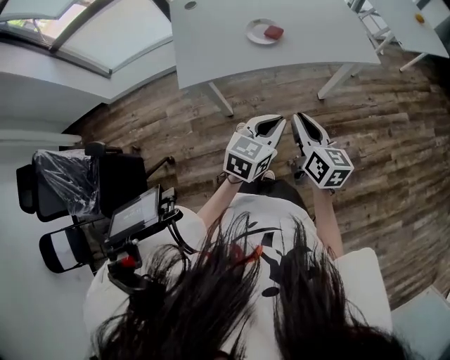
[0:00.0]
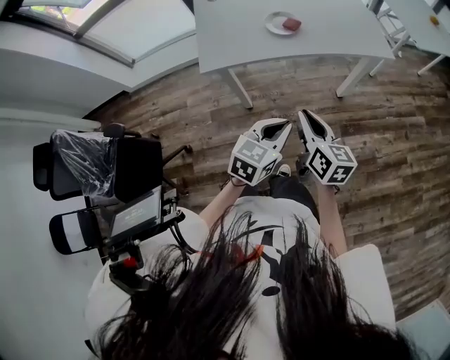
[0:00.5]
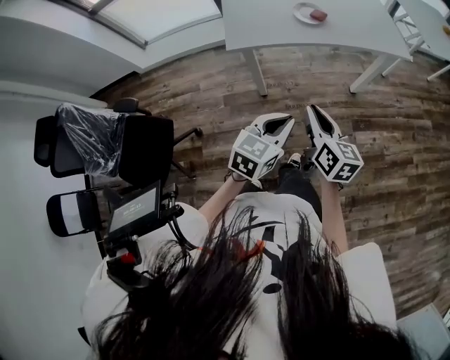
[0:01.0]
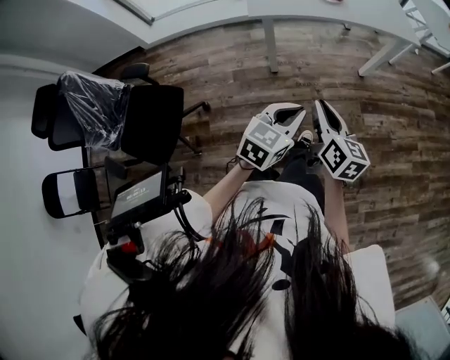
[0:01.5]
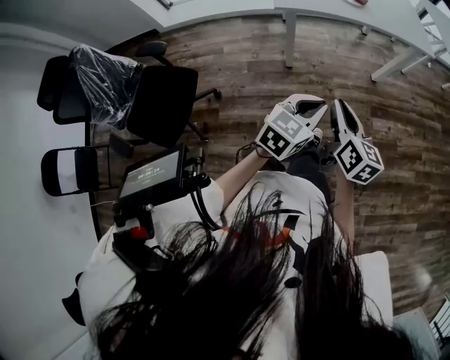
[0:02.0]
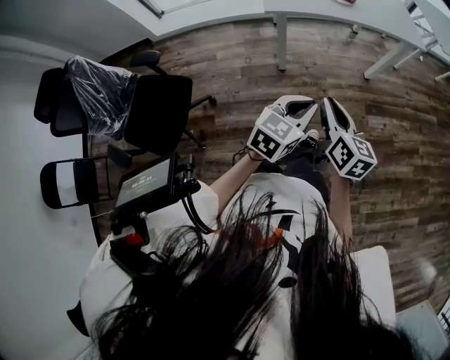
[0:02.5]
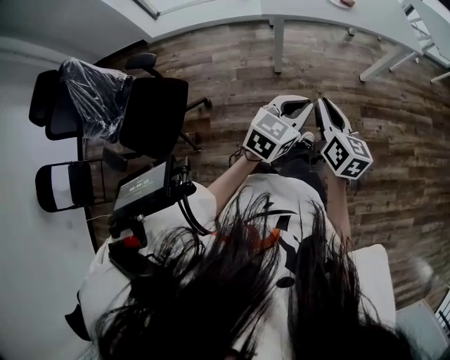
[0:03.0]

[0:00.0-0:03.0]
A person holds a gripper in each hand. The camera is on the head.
0:00.0 to 0:01.5: Both grippers travel together backward, roughly 25 cm.
0:01.5 to 0:03.0: The grippers move only a little.

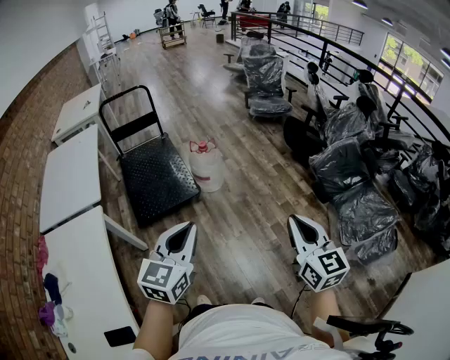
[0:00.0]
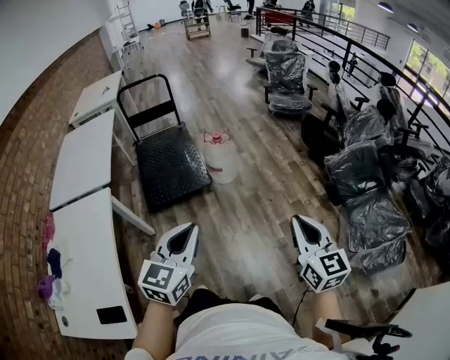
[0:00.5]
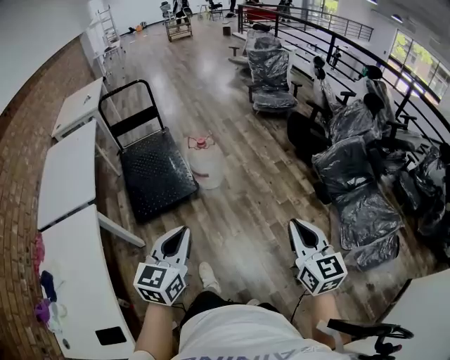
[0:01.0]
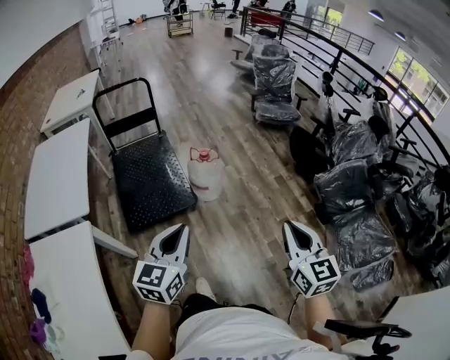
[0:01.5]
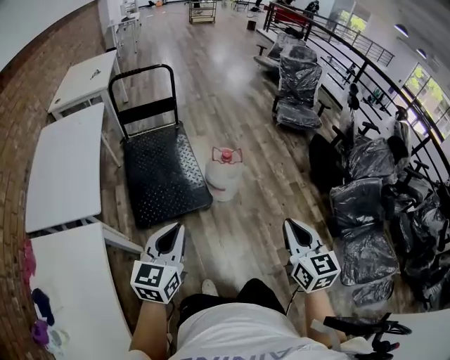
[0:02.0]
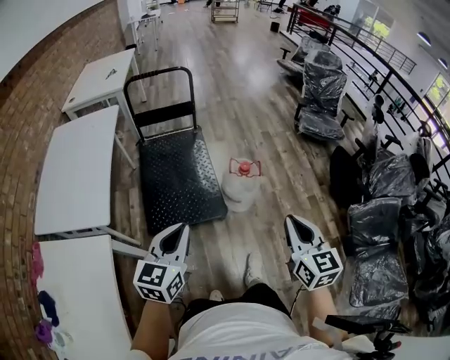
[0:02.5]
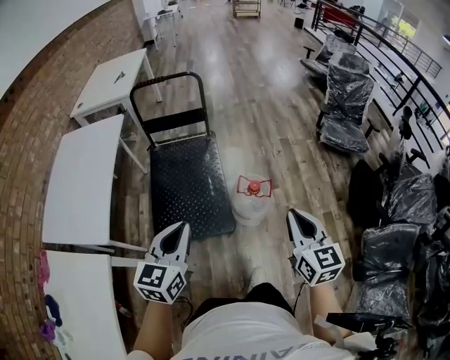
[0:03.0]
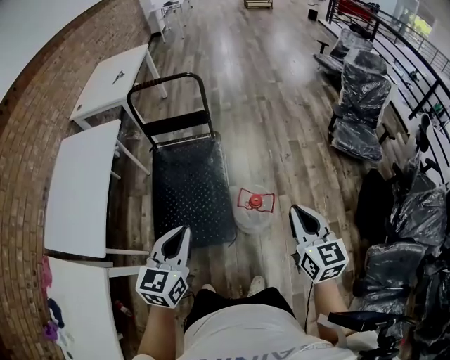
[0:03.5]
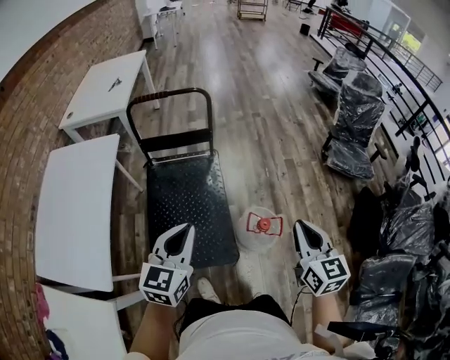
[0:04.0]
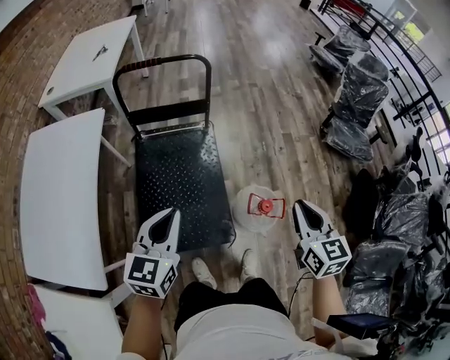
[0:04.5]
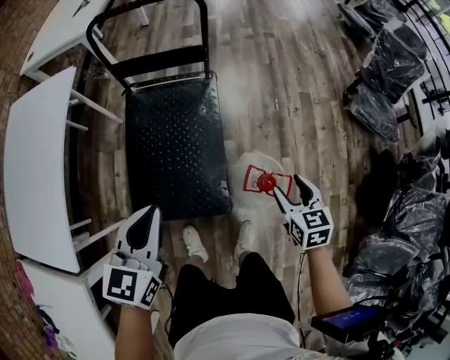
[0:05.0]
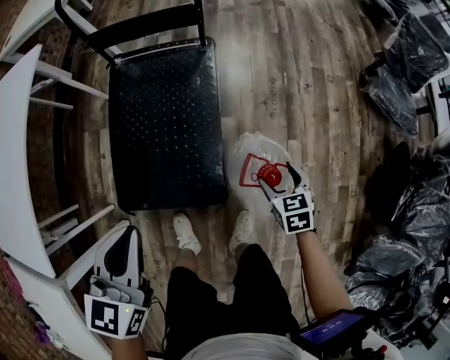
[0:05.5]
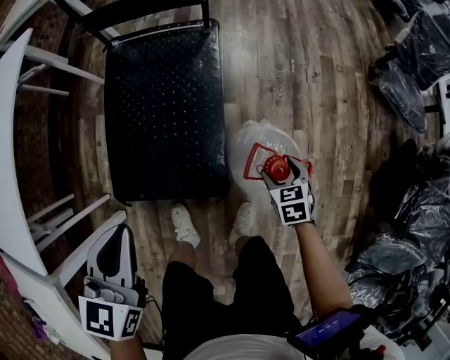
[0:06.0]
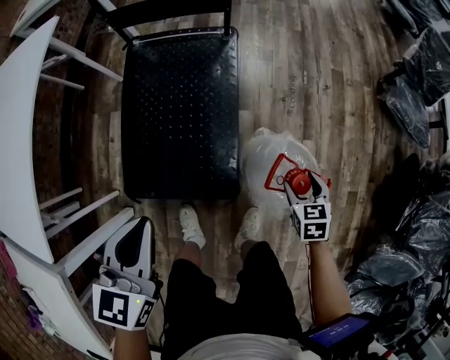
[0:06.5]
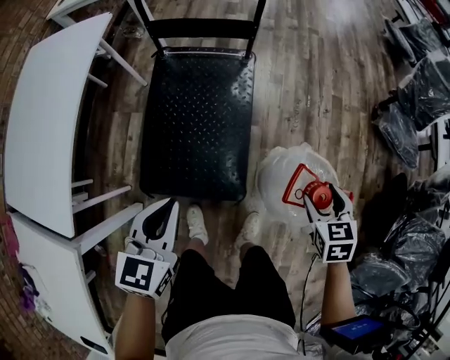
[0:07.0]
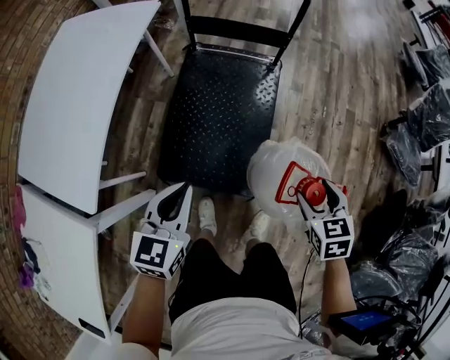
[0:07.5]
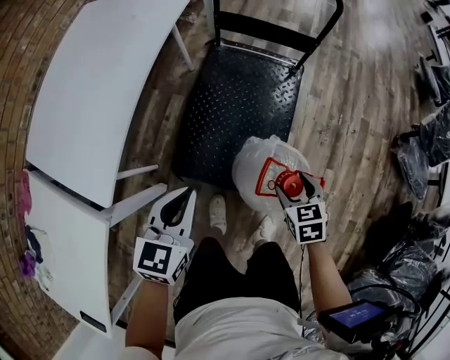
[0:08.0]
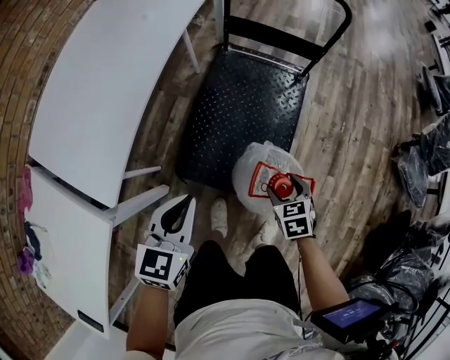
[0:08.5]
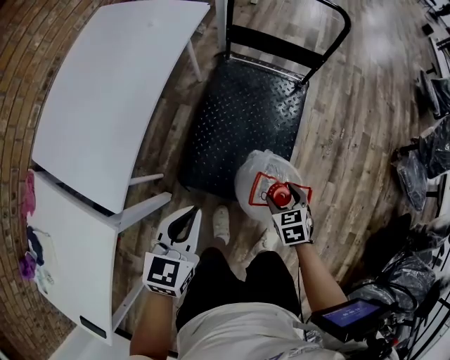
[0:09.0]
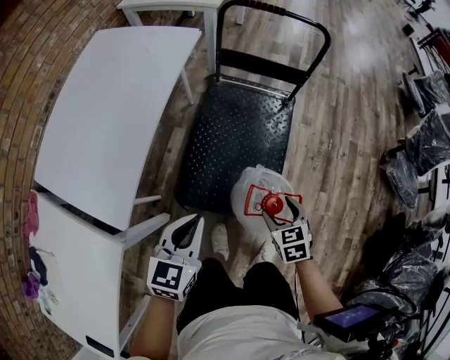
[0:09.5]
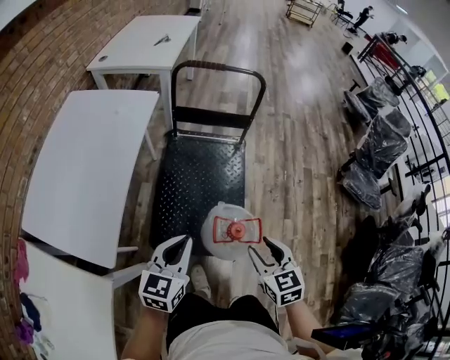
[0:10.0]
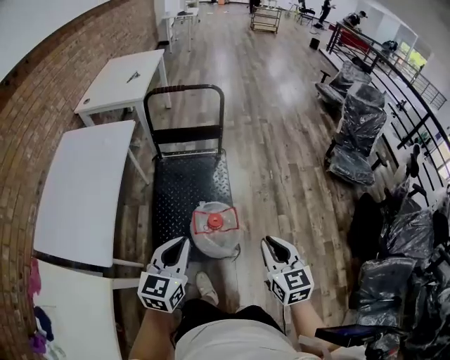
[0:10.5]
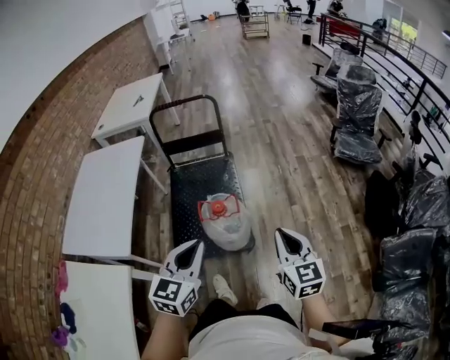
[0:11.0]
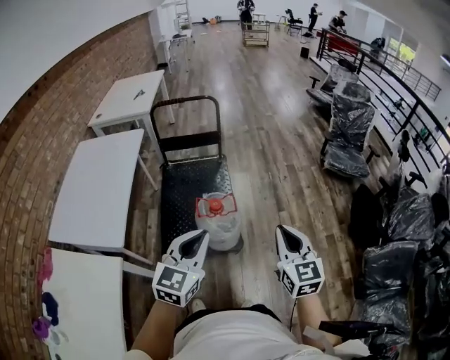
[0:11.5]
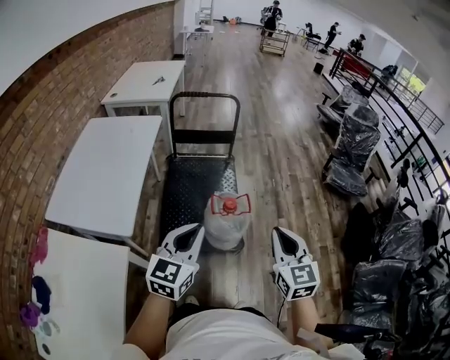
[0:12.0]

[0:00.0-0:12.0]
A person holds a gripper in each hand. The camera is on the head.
0:00.0 to 0:02.0: The grippers both shift forward and to the left by approximately 25 cm.
0:02.0 to 0:04.0: The grippers both shift forward by roughly 40 cm.
0:04.0 to 0:06.0: The right gripper is displaced downward by about 50 cm, tips its fingers downward by roughly 40 degrees, and opens, while the left gripper shifts roughly 25 cm downward, and swivels some 20 degrees.
0:06.0 to 0:08.0: The left gripper shifts approximately 15 cm to the left and upward, while the right gripper goes about 30 cm to the left and upward.
0:08.0 to 0:10.0: The left gripper is displaced upward by approximately 5 cm; the right gripper travels upward and backward by about 20 cm, and turns by about 20 degrees.
0:10.0 to 0:12.0: The two grippers go about 25 cm backward and upward. The right gripper changes its angle by some 30 degrees, and closes.

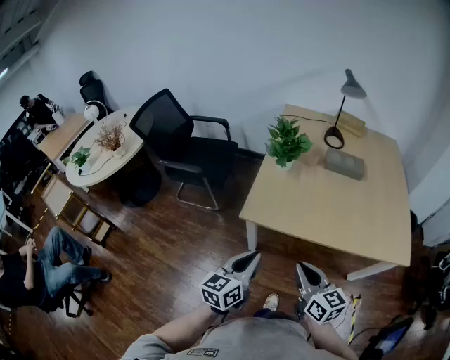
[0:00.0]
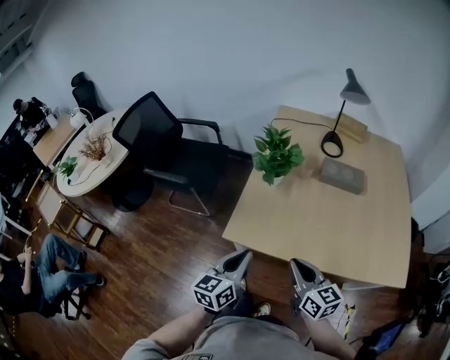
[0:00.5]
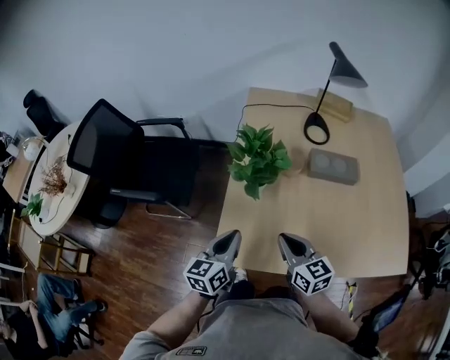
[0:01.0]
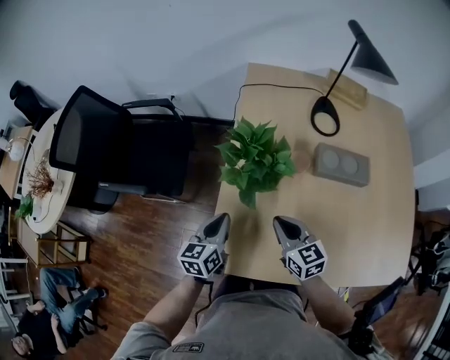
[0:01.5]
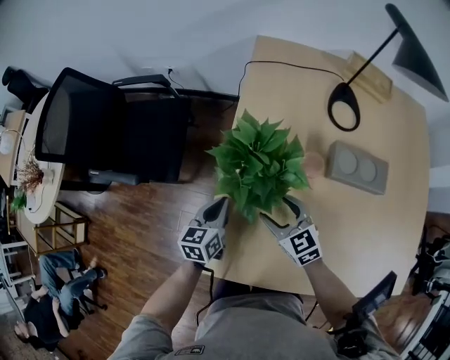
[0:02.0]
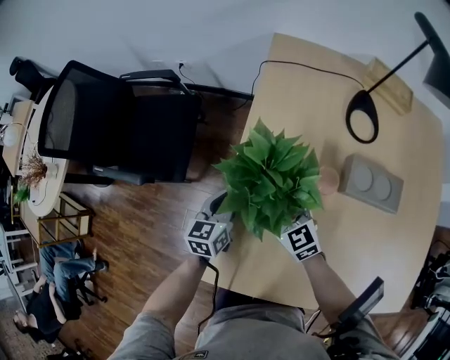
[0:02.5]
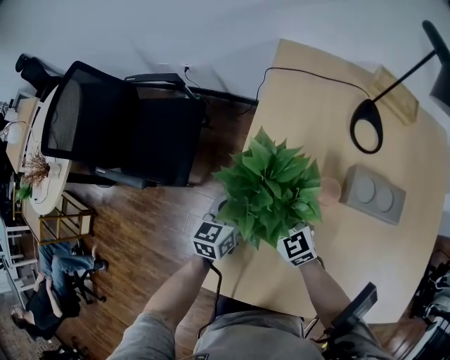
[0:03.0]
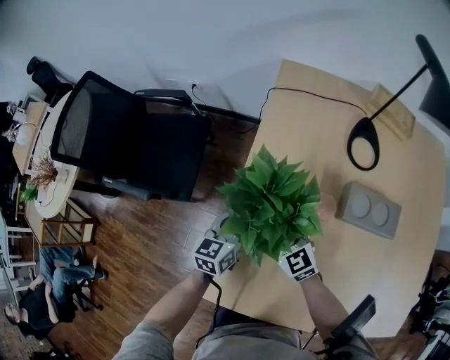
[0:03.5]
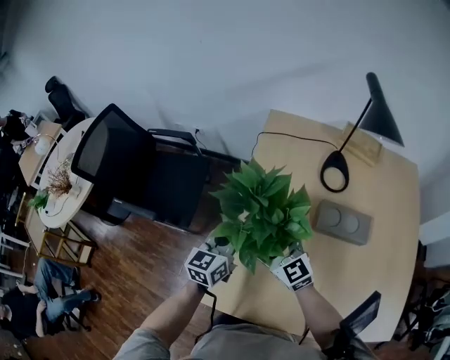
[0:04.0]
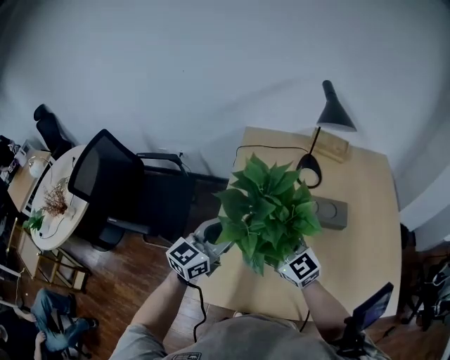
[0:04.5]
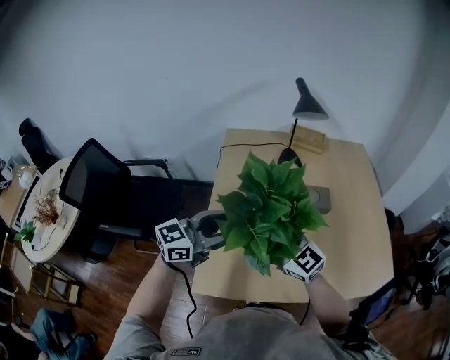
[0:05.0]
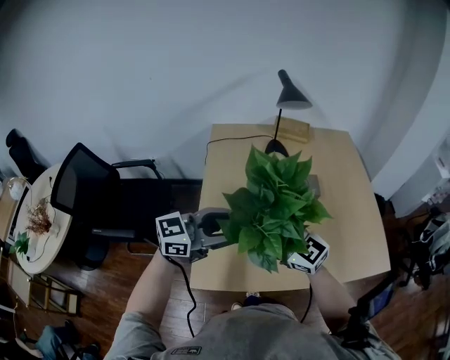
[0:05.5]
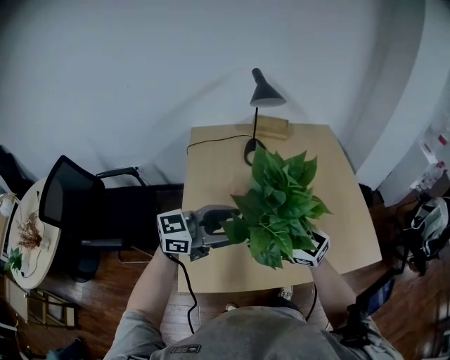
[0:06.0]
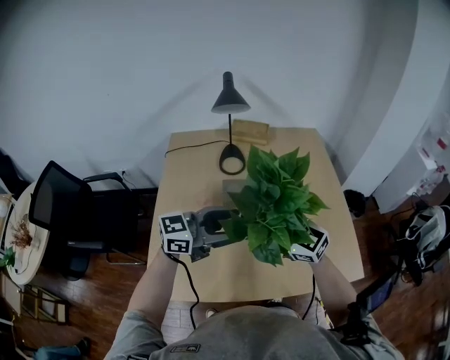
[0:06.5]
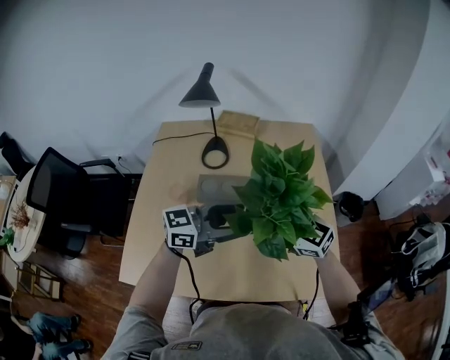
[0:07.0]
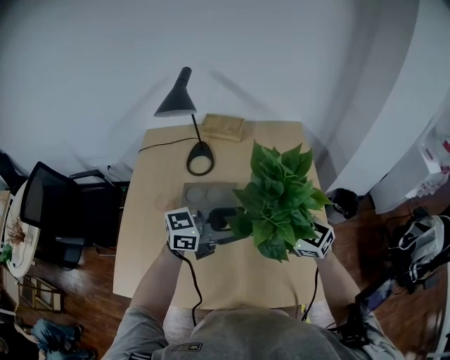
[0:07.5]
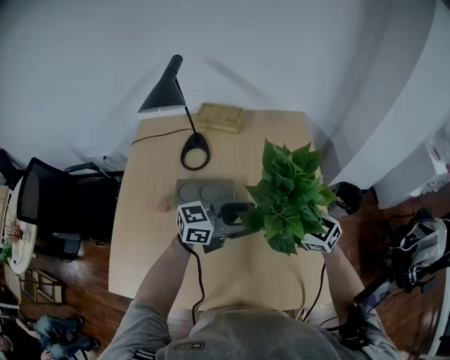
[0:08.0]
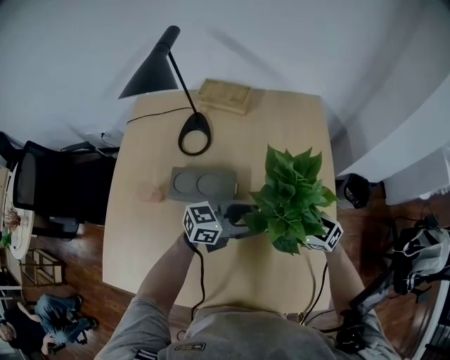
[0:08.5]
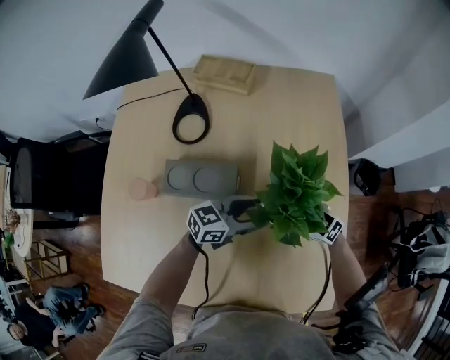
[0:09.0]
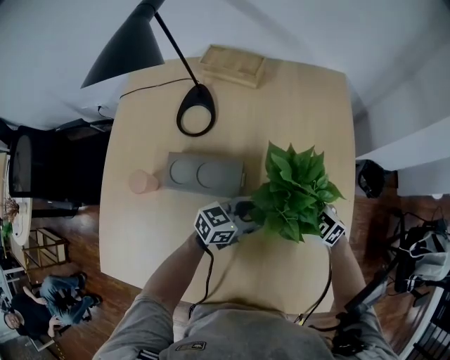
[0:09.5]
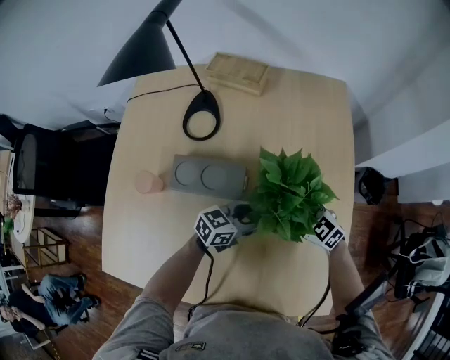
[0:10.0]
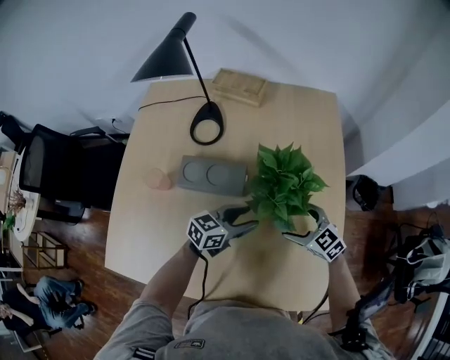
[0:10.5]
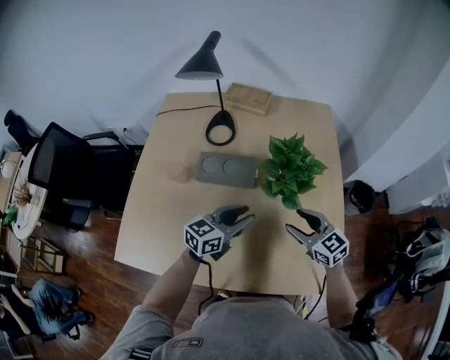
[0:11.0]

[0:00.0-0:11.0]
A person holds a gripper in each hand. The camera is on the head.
0:00.0 to 0:02.0: Both grippers are carried forward, roughly 40 cm. The right gripper changes its angle by some 30 degrees, and opens. The left gripper swivels about 20 degrees.
0:02.0 to 0:03.5: The grippers both shift forward by roughly 5 cm. The right gripper opens its fingers.
0:03.5 to 0:05.5: The two grippers go some 25 cm upward. The left gripper changes its angle by some 70 degrees, and opens up.
0:05.5 to 0:07.5: The left gripper ends up approximately 40 cm from where it was. The right gripper moves roughly 40 cm.
0:07.5 to 0:09.0: The grippers both shift downward by roughly 20 cm.
0:09.0 to 0:11.0: The right gripper ends up about 15 cm from where it was, turns by about 20 degrees, and closes. The left gripper changes place by about 15 cm, changes its angle by roughly 20 degrees, and closes.

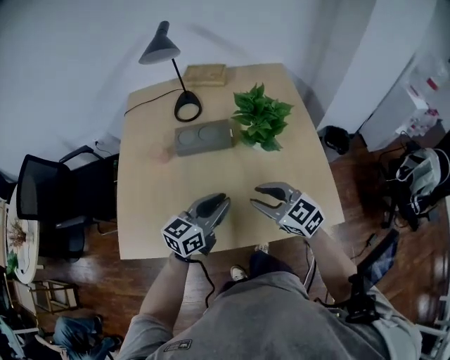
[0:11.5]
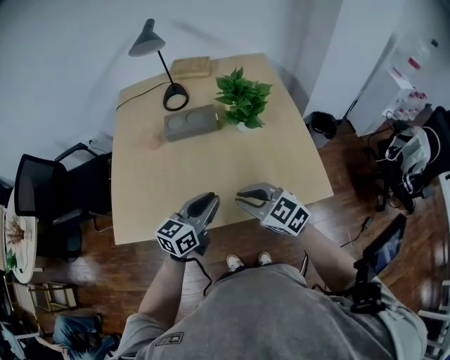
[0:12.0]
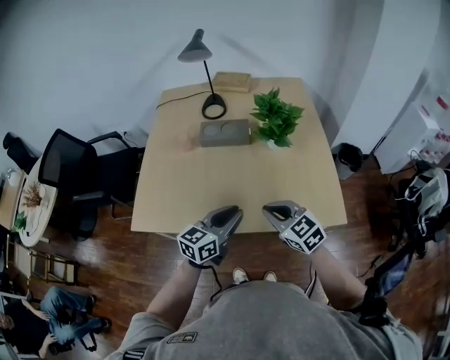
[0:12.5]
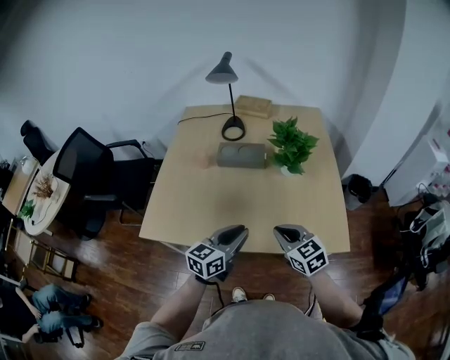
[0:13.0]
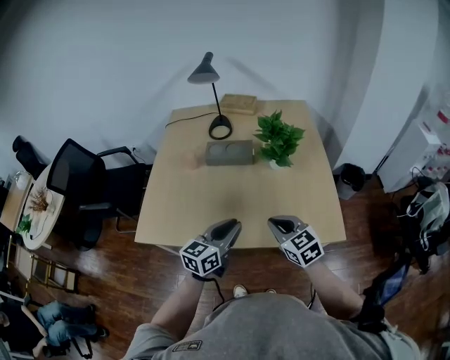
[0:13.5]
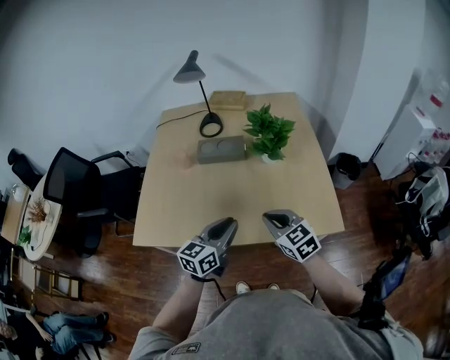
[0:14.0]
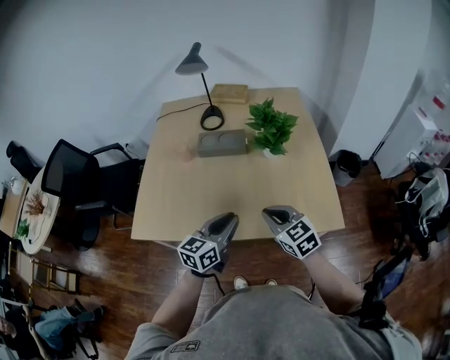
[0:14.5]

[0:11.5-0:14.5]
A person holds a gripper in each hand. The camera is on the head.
0:11.5 to 0:13.0: The two grippers go roughly 10 cm backward.
0:13.0 to 0:14.5: The two grippers keep their place.
